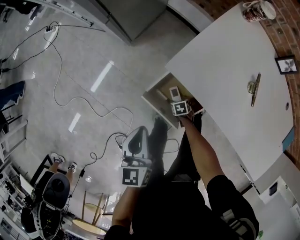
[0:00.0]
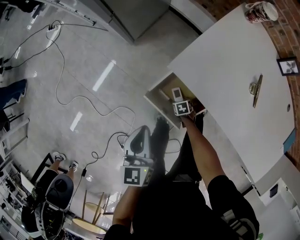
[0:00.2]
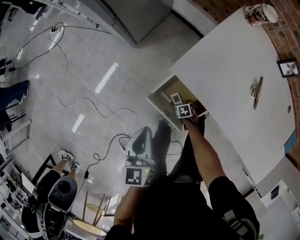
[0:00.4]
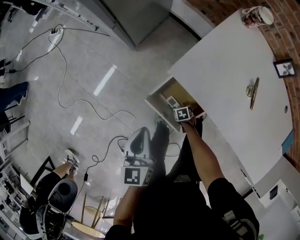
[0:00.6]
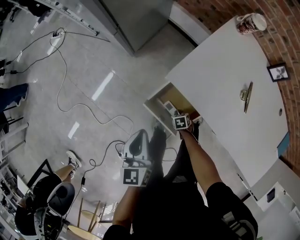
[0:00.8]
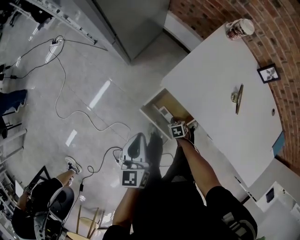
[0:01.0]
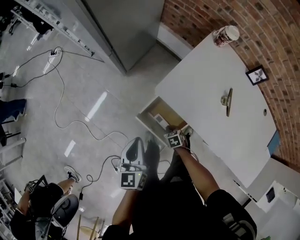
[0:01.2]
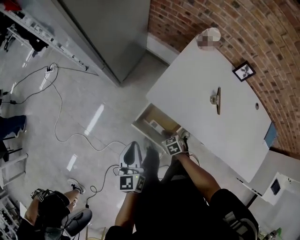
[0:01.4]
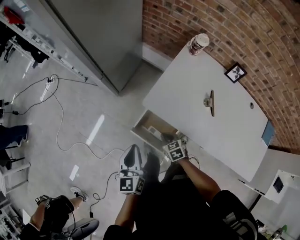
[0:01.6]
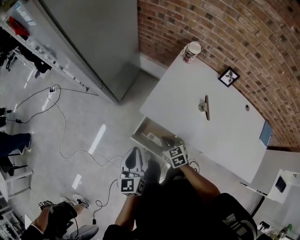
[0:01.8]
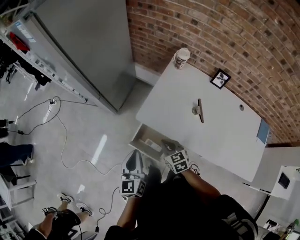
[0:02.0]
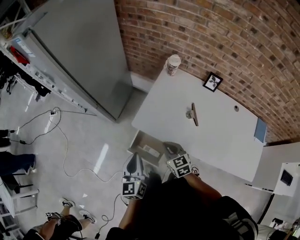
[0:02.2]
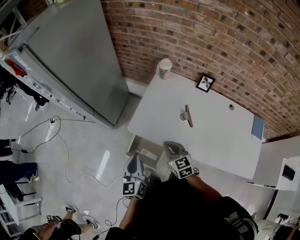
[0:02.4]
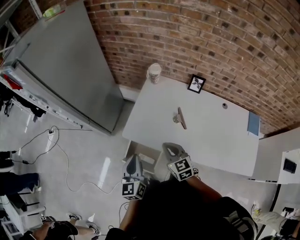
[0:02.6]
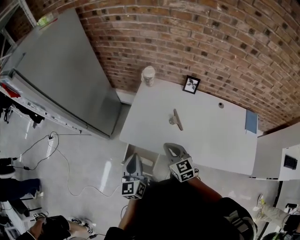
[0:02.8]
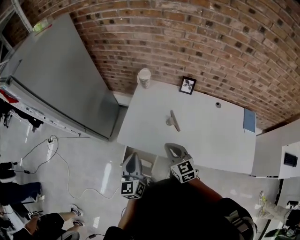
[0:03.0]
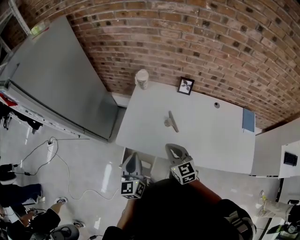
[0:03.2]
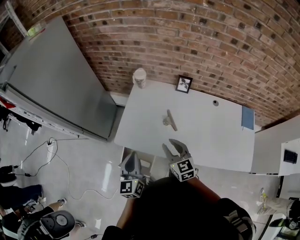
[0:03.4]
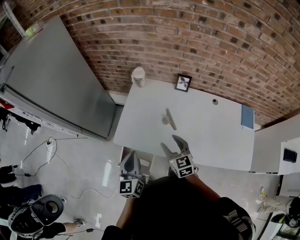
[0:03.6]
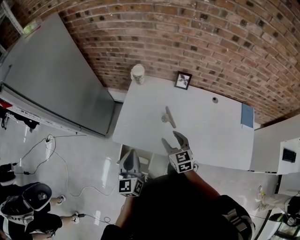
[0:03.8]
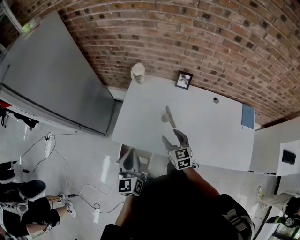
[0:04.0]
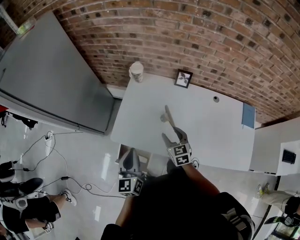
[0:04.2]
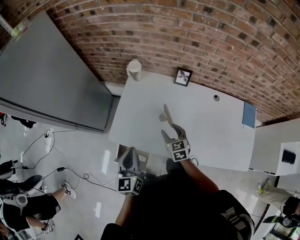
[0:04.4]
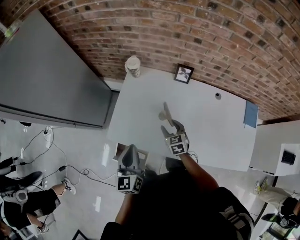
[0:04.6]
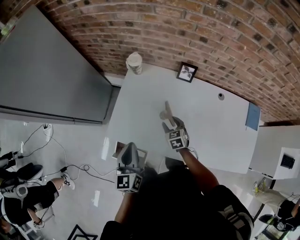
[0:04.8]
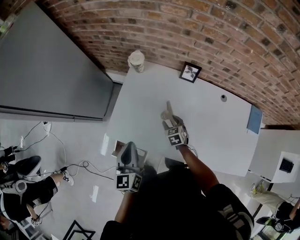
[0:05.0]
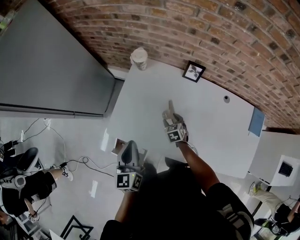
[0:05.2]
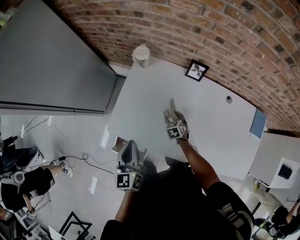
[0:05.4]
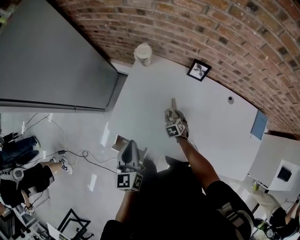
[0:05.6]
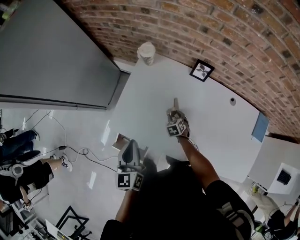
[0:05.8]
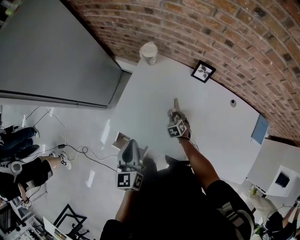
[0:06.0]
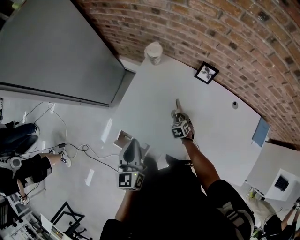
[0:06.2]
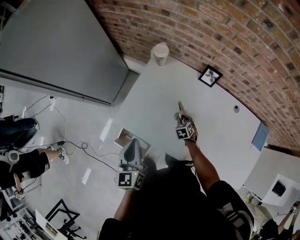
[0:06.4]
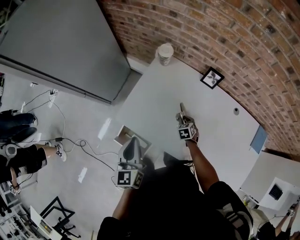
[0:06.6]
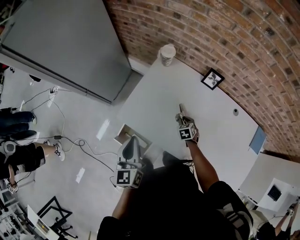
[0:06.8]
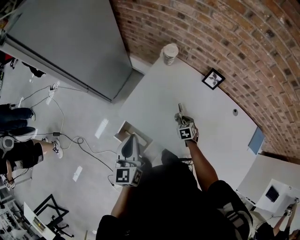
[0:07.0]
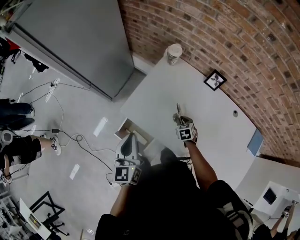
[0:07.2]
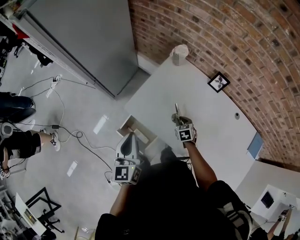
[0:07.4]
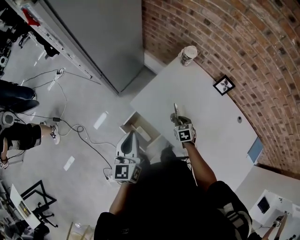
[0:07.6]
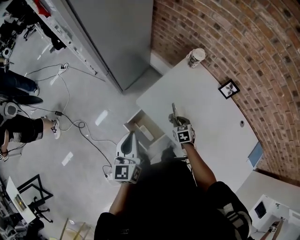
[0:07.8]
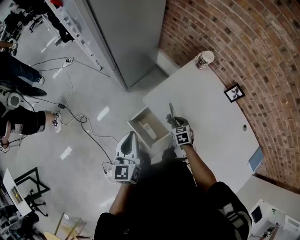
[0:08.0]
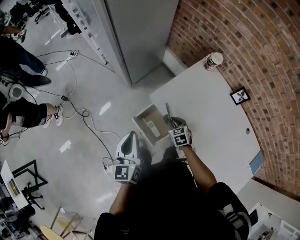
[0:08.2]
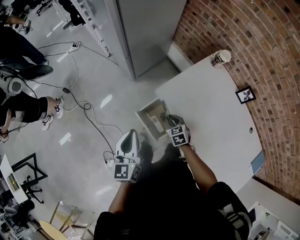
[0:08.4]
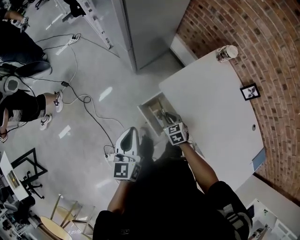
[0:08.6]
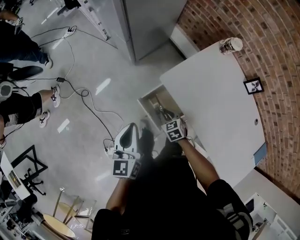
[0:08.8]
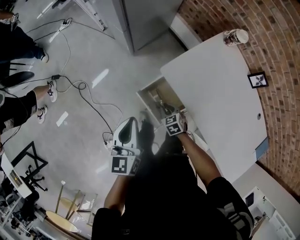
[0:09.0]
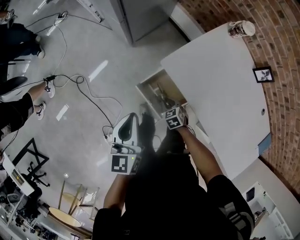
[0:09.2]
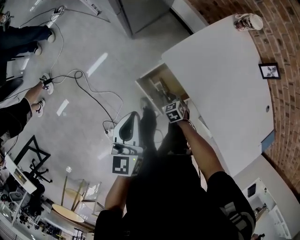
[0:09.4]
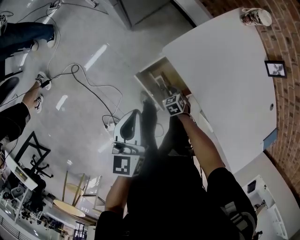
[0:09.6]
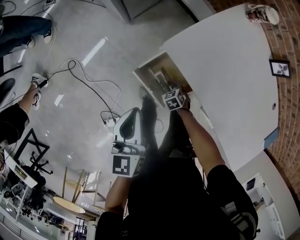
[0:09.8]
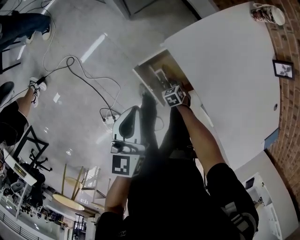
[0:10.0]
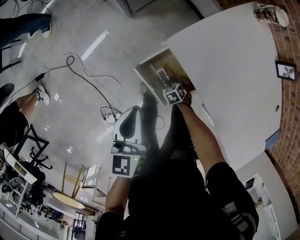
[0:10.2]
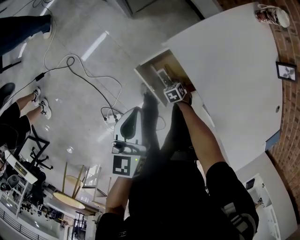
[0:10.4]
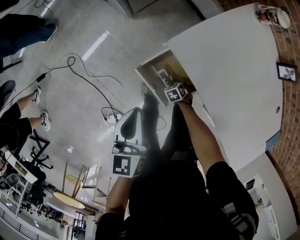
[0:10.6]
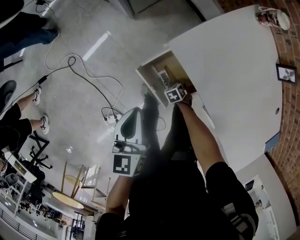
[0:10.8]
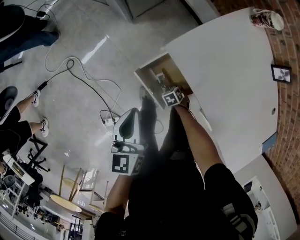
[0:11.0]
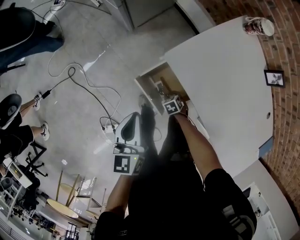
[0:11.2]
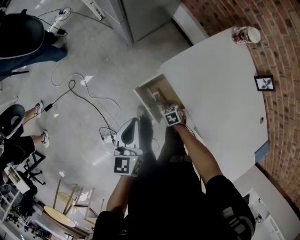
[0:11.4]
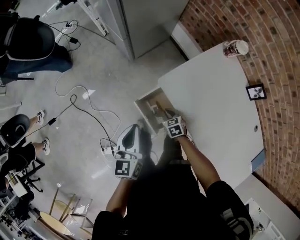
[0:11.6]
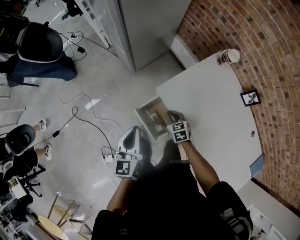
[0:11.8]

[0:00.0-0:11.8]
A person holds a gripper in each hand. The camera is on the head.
0:00.0 to 0:01.4: The left gripper heads upward, covering roughly 10 cm; the right gripper moves upward, roughly 25 cm, and closes its fingers.
0:01.4 to 0:03.0: The left gripper is displaced to the right and upward by about 25 cm, and turns by some 20 degrees. Meanwhile the right gripper moves upward and to the right, approximately 40 cm, and tilts its fingers roughly 40 degrees upward.
0:03.0 to 0:04.4: The right gripper moves downward, forward and to the right, approximately 15 cm, and opens its fingers. The left gripper shifts by roughly 5 cm.
0:04.4 to 0:06.0: The right gripper moves downward, about 20 cm, and turns by about 30 degrees.
0:06.0 to 0:07.4: The right gripper moves to the left, upward and backward, approximately 10 cm. Meanwhile the left gripper travels to the left and backward by about 15 cm.
0:07.4 to 0:08.8: The left gripper heads to the left, covering about 20 cm; the right gripper heads to the left, covering approximately 30 cm, and turns by about 30 degrees.
0:08.8 to 0:10.4: The right gripper heads downward, covering some 30 cm, and turns by about 30 degrees; the left gripper travels downward by approximately 10 cm.
0:10.4 to 0:11.8: The left gripper shifts roughly 10 cm upward; the right gripper is displaced upward by roughly 30 cm, and rotates approximately 30 degrees.

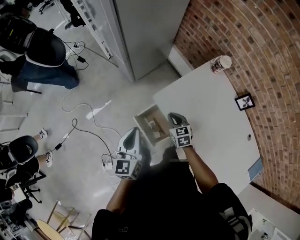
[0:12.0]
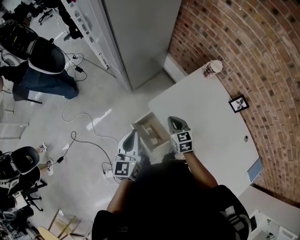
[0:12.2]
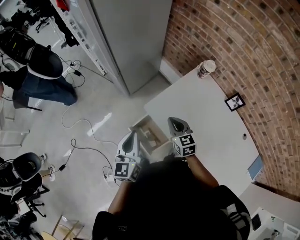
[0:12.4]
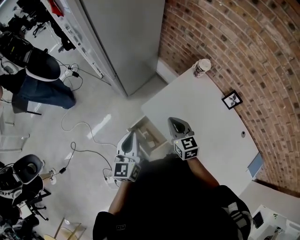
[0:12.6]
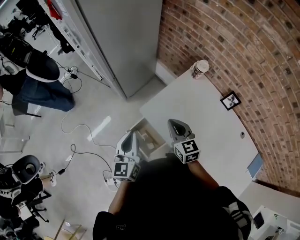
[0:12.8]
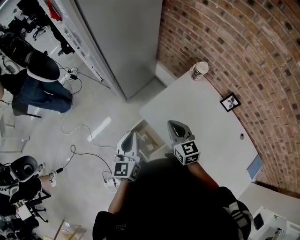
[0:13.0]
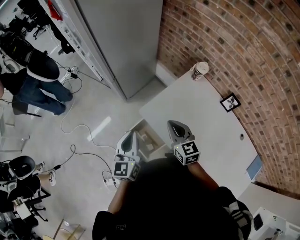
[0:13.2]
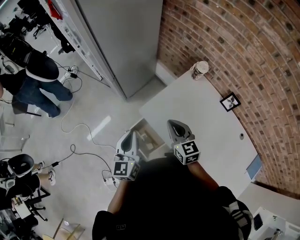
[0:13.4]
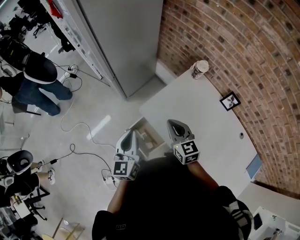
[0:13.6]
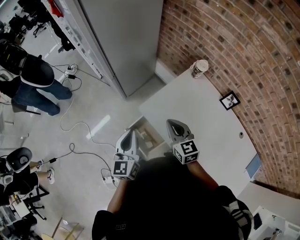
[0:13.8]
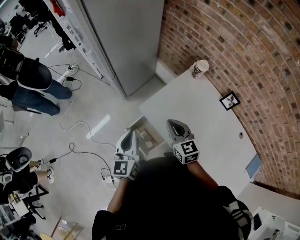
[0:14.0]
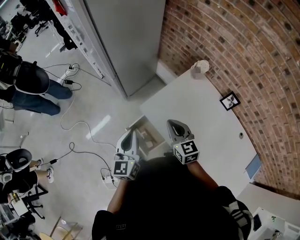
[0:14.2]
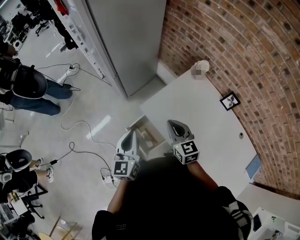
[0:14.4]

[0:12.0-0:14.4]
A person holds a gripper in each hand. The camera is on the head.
0:12.0 to 0:13.2: The left gripper travels to the right and upward by about 10 cm, while the right gripper goes about 20 cm upward, and changes its angle by some 20 degrees.
0:13.2 to 0:14.4: There are only small adjustments of the grippers.

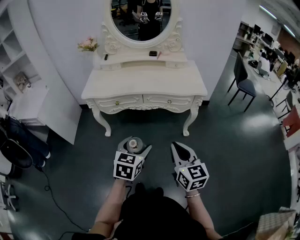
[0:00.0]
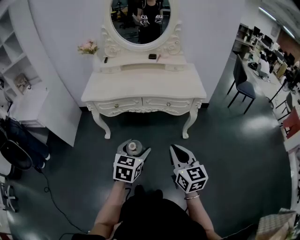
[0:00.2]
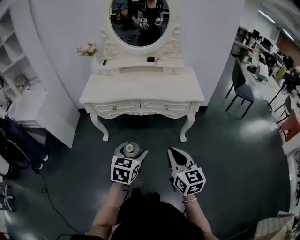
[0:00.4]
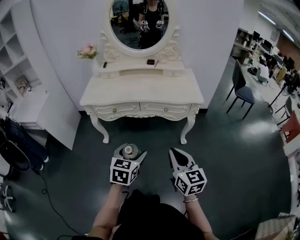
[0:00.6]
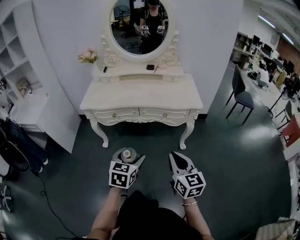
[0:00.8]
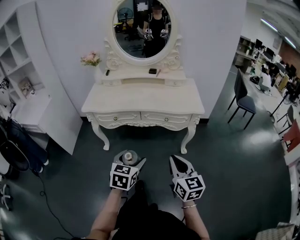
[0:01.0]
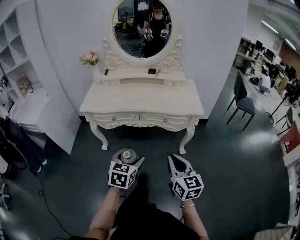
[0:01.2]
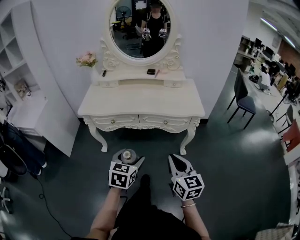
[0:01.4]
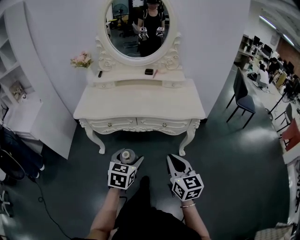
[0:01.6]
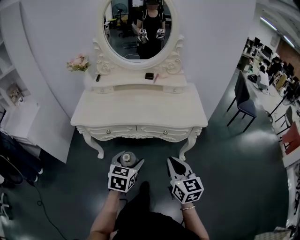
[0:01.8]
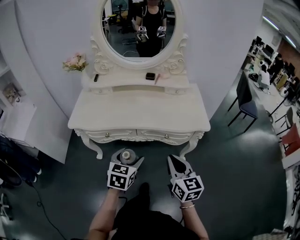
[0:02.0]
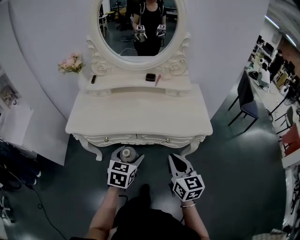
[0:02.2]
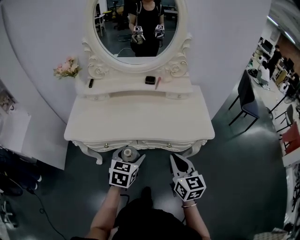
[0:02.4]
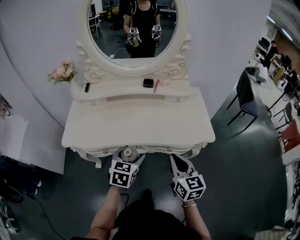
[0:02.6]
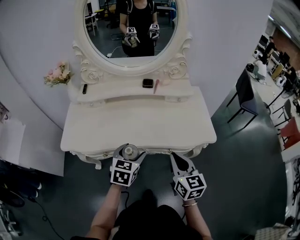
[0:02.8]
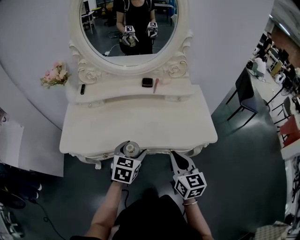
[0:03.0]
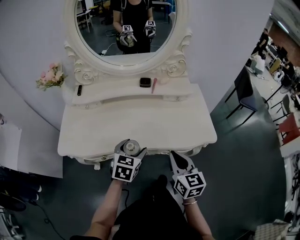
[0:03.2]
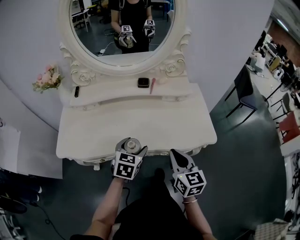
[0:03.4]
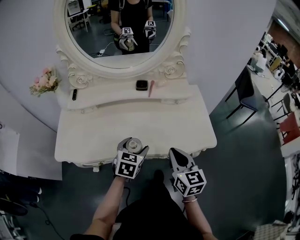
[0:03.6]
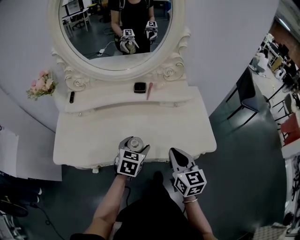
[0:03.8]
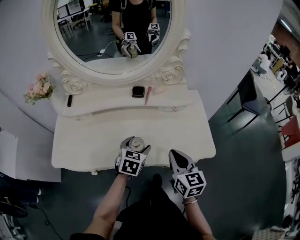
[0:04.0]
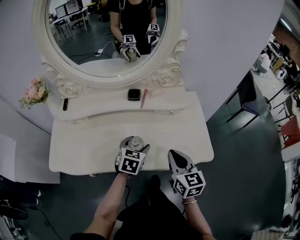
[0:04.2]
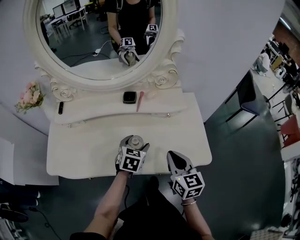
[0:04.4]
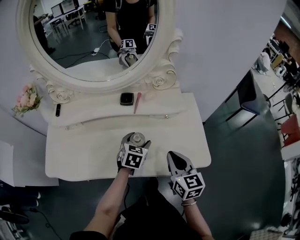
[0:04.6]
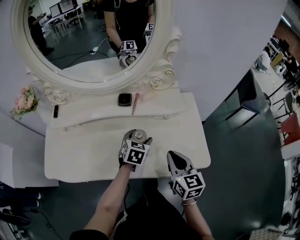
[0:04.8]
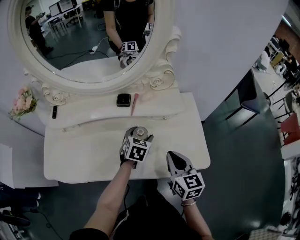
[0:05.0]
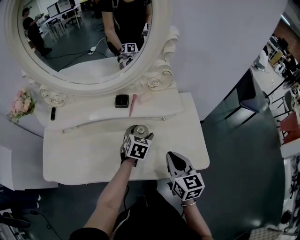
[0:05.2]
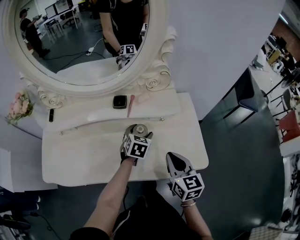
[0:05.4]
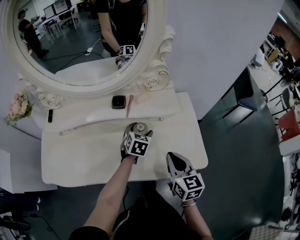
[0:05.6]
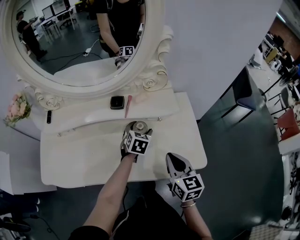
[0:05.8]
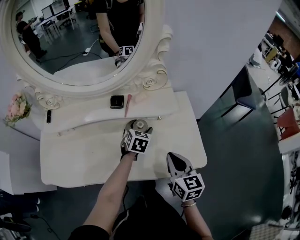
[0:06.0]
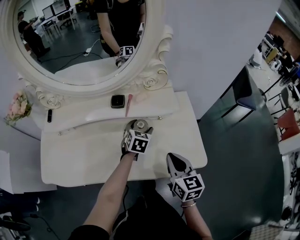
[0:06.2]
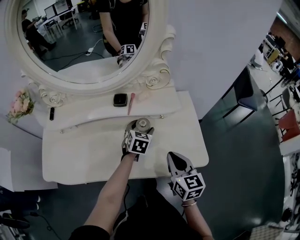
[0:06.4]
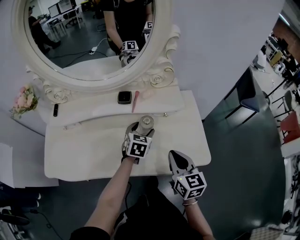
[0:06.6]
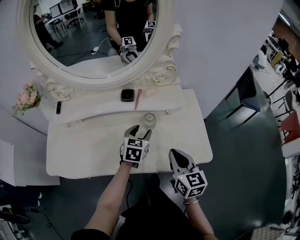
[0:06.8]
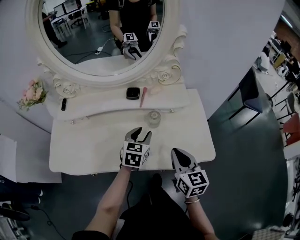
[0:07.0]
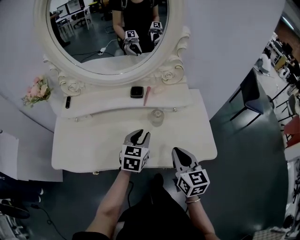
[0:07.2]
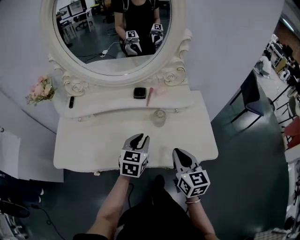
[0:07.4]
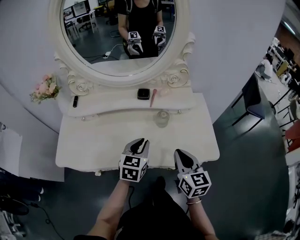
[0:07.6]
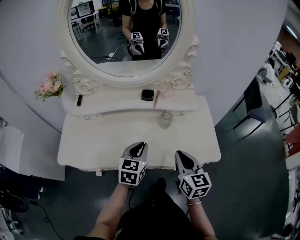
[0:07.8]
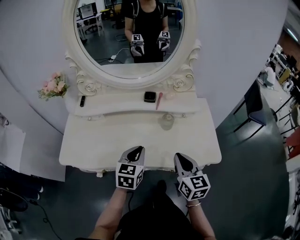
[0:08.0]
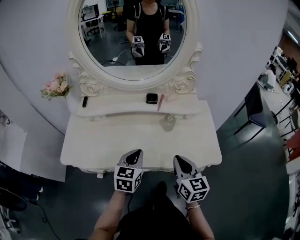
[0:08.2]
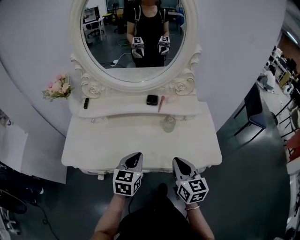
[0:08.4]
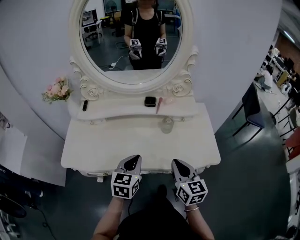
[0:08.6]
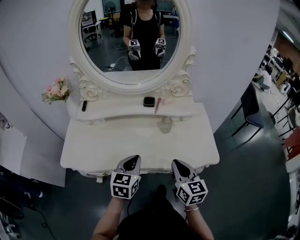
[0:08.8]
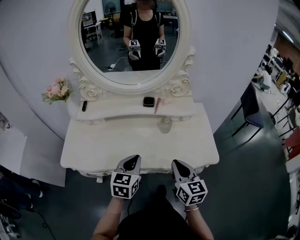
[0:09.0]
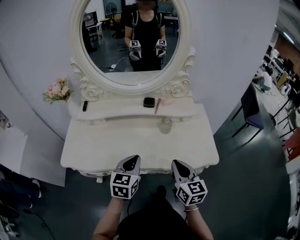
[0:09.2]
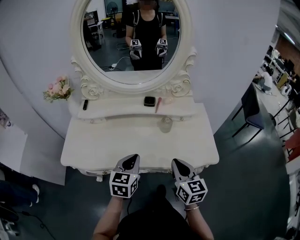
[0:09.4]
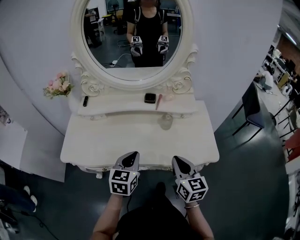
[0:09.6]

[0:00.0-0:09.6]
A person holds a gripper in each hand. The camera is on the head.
0:00.0 to 0:01.6: Both grippers move forward, about 10 cm.
0:01.6 to 0:03.2: The two grippers go roughly 30 cm forward.
0:03.2 to 0:04.8: Both grippers move forward and to the right, approximately 20 cm.
0:04.8 to 0:06.4: The left gripper travels forward by about 5 cm.
0:06.4 to 0:08.0: The right gripper travels to the left and backward by some 10 cm. Meanwhile the left gripper heads backward, to the left and upward, covering some 25 cm, and closes.
0:08.0 to 0:09.6: The left gripper changes place by some 5 cm.
